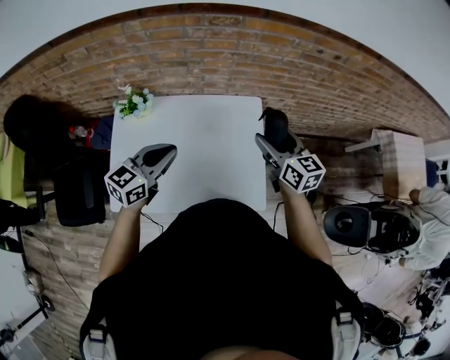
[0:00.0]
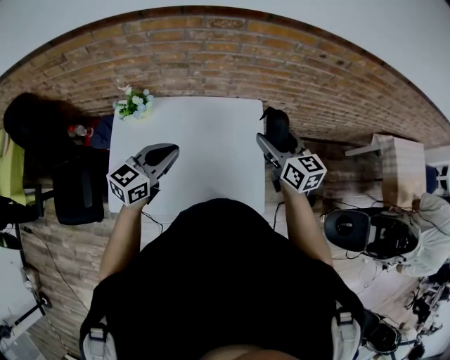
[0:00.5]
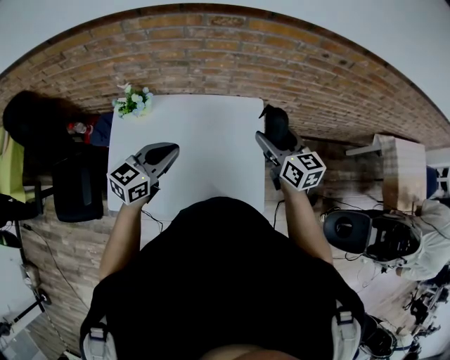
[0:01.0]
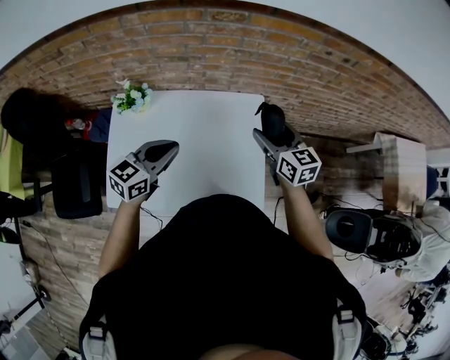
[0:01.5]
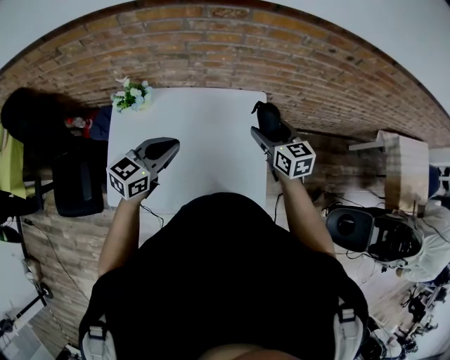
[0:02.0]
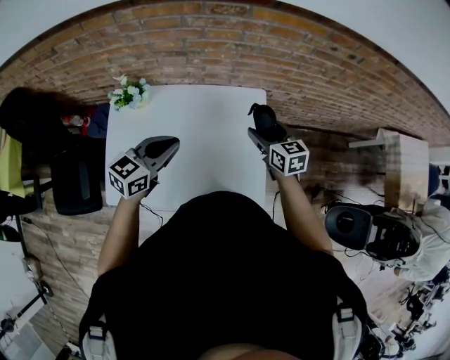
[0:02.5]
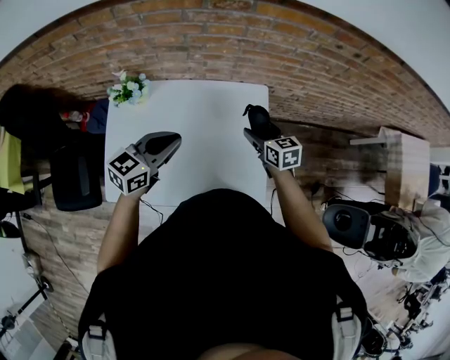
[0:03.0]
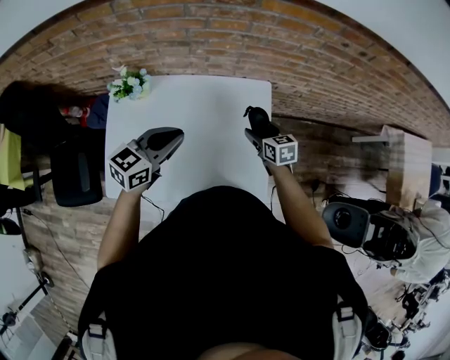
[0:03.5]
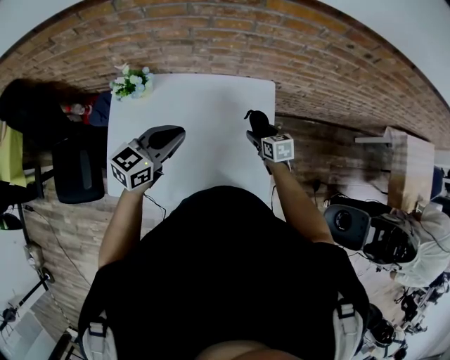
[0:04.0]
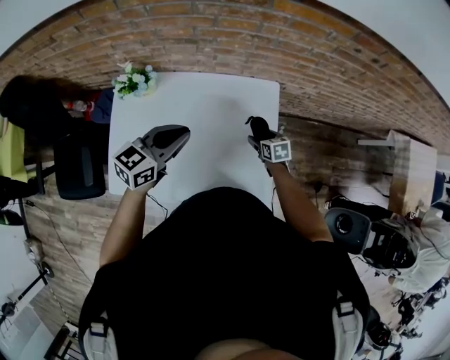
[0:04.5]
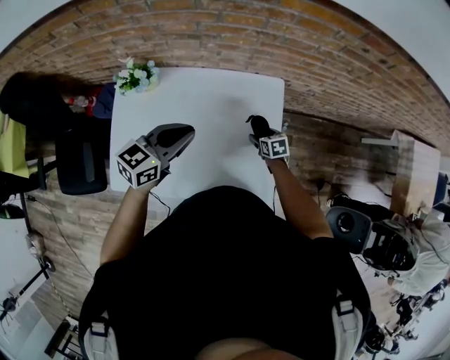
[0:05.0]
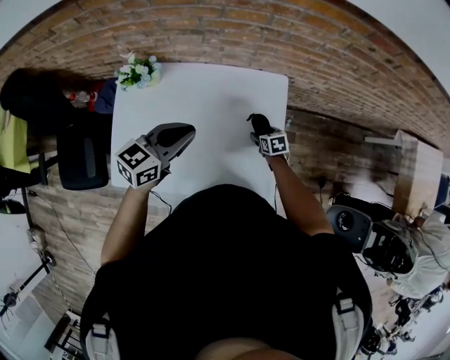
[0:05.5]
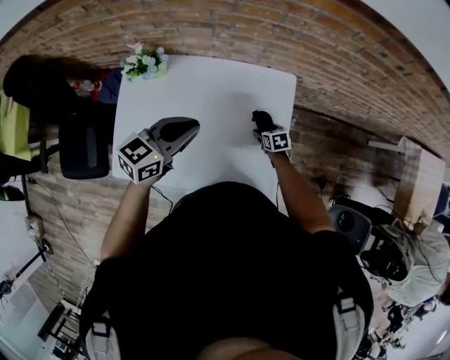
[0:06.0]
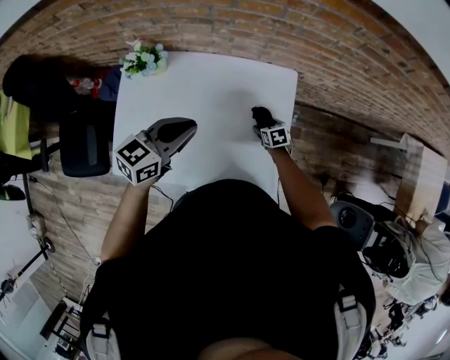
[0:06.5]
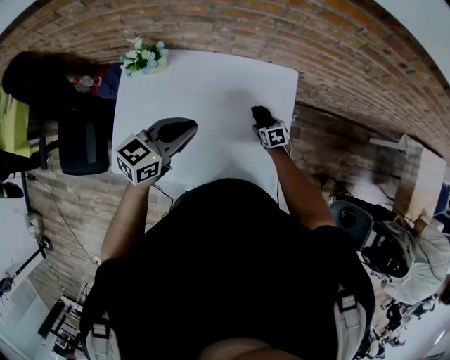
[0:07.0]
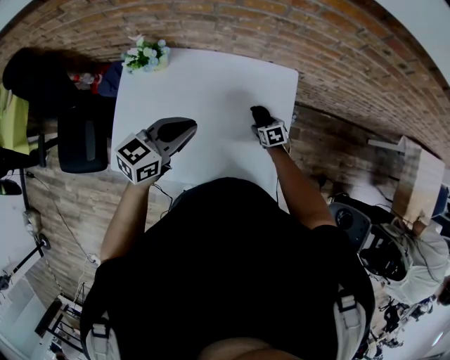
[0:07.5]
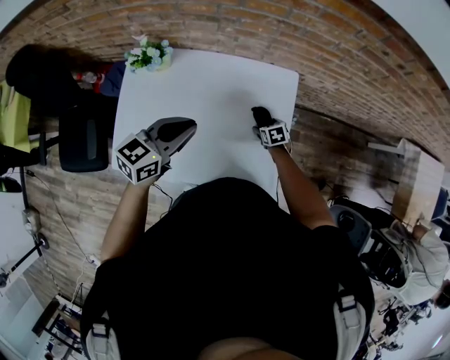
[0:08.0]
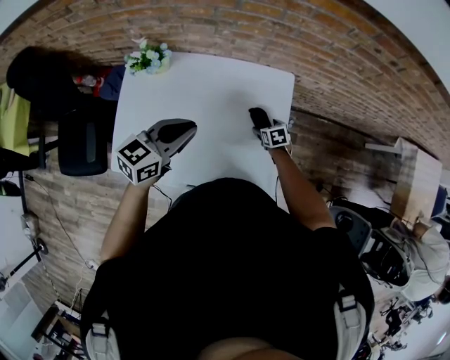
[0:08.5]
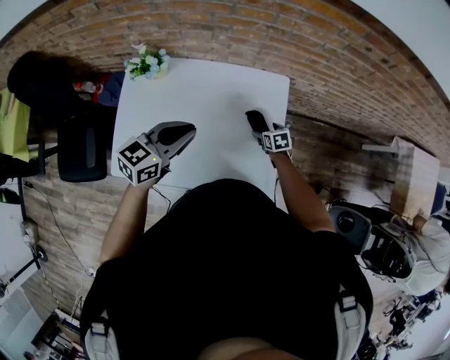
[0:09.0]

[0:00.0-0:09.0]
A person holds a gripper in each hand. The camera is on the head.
0:00.0 to 0:02.0: The right gripper travels downward and forward by approximately 10 cm.
0:02.0 to 0:04.5: The right gripper travels downward by roughly 25 cm, and changes its angle by some 30 degrees.
0:04.5 to 0:07.0: The right gripper goes some 10 cm downward.
0:07.0 to 0:09.0: The grippers make only small movements.

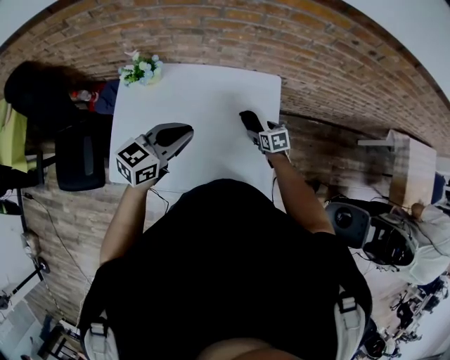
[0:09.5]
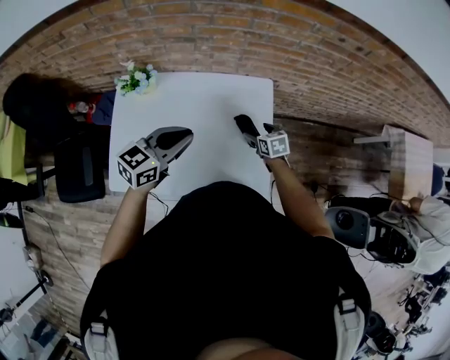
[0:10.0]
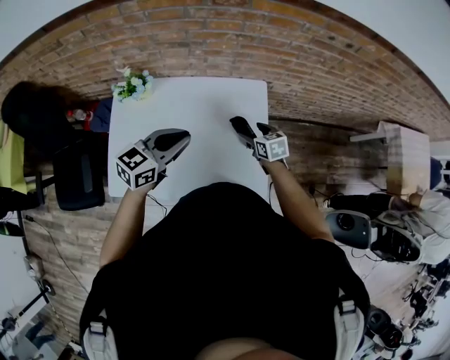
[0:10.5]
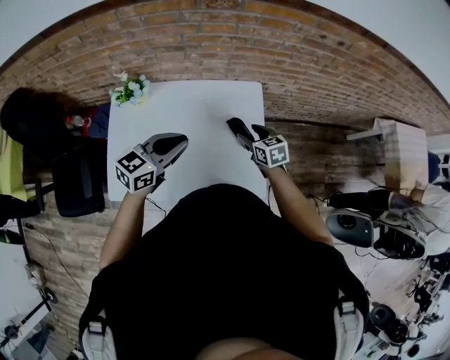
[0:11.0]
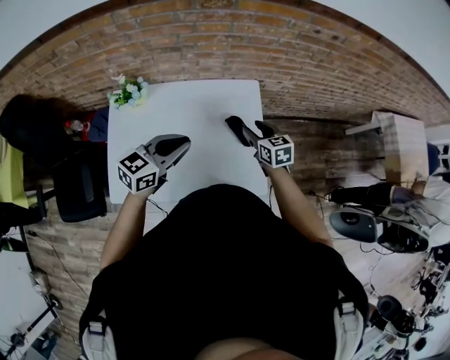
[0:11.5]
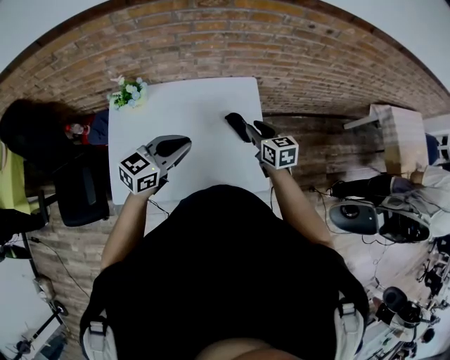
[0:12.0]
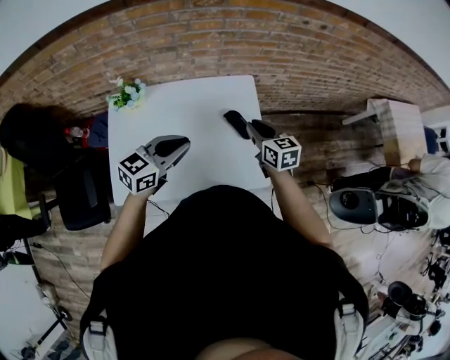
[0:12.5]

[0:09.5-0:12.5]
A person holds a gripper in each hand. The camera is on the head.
0:09.5 to 0:11.0: The right gripper goes roughly 15 cm upward.
0:11.0 to 0:12.5: The right gripper travels upward by about 10 cm, and closes its fingers.

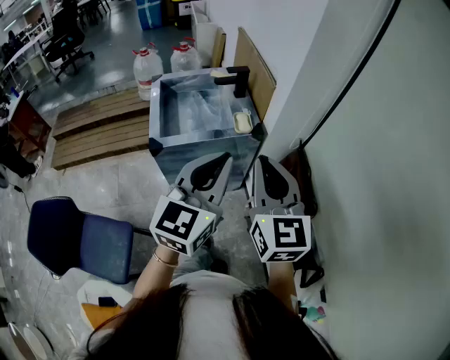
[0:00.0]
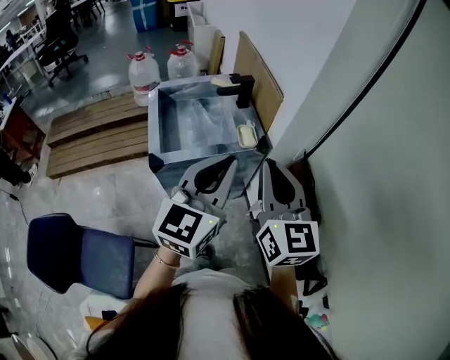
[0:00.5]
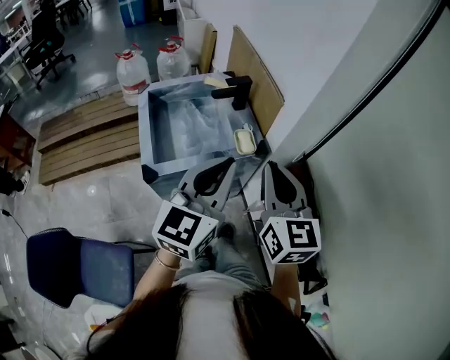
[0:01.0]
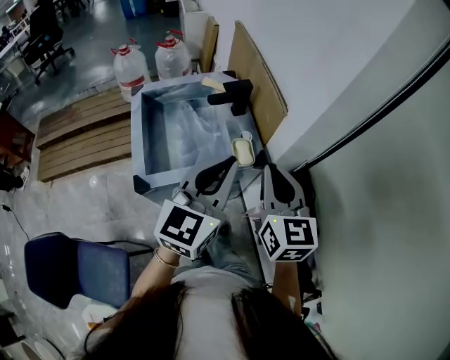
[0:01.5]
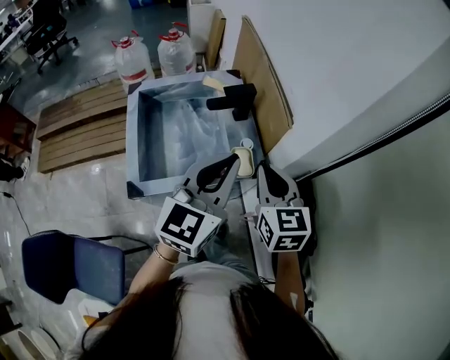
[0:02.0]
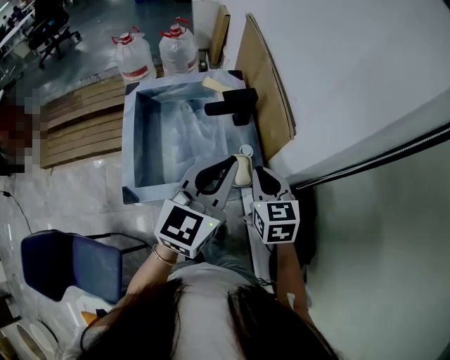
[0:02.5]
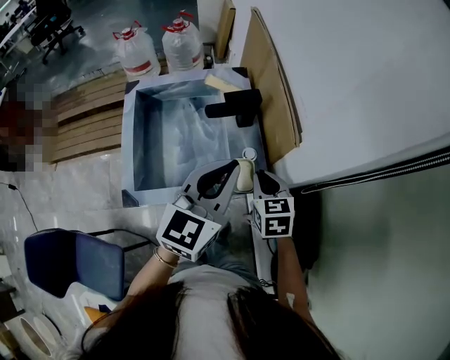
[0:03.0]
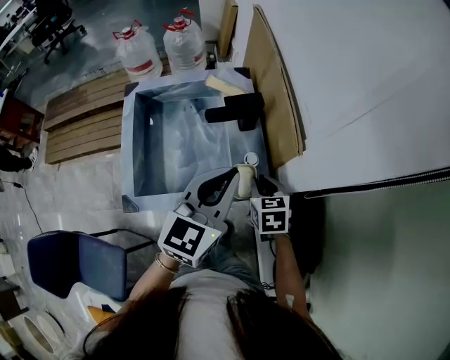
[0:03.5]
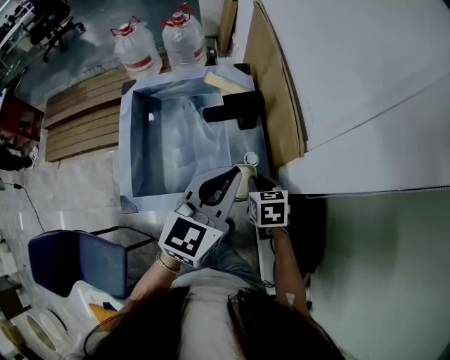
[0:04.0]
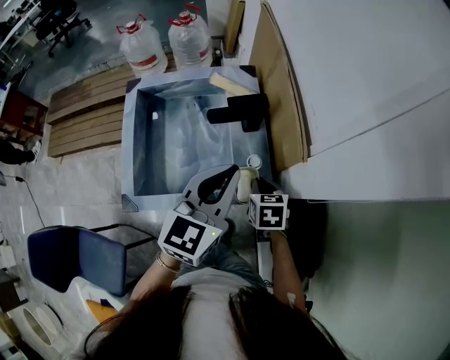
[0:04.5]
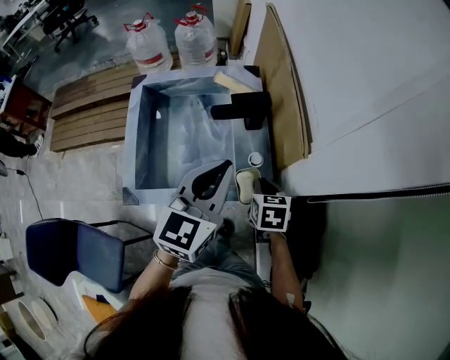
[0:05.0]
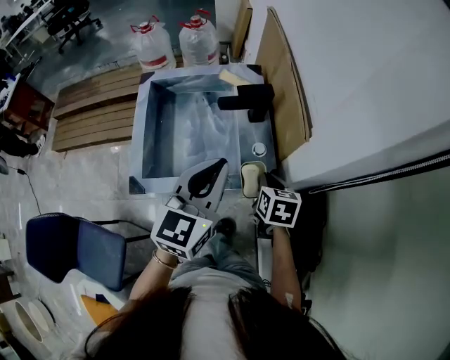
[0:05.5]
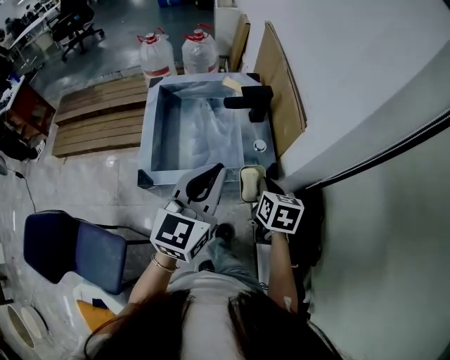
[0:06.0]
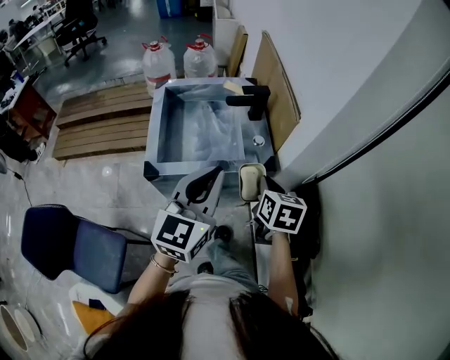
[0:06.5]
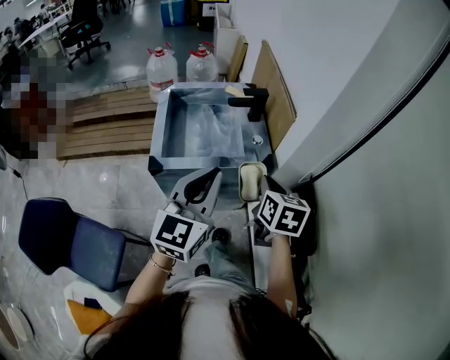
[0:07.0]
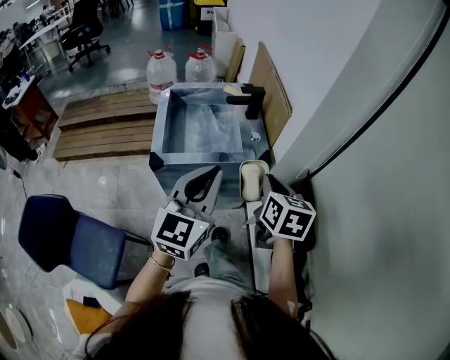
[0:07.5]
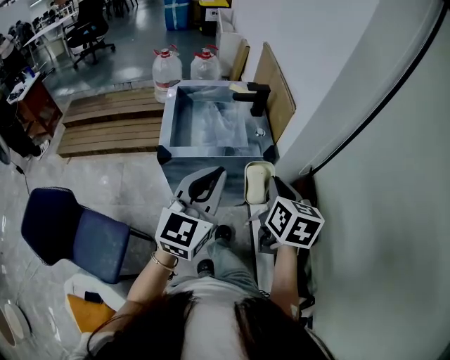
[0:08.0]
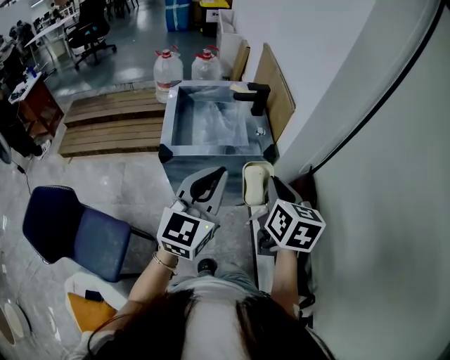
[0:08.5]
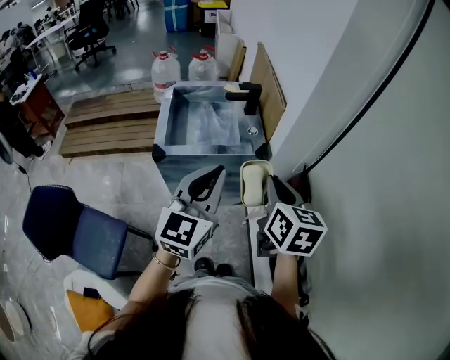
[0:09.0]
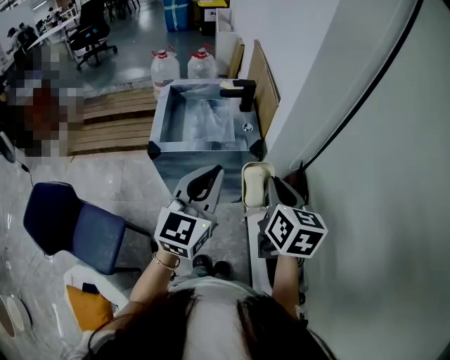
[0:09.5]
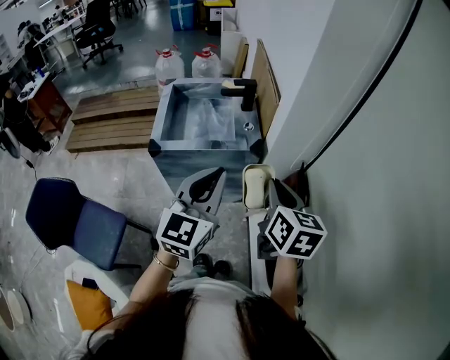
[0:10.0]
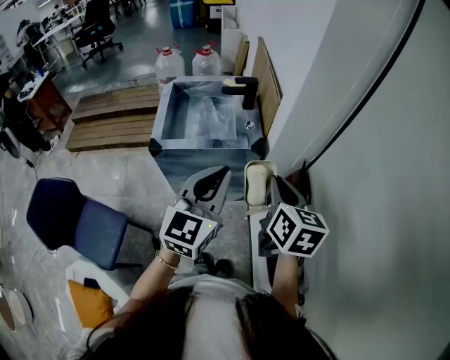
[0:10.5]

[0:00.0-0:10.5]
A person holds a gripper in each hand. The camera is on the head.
0:00.0 to 0:02.0: The left gripper travels forward by roughly 25 cm, while the right gripper moves forward and downward, roughly 30 cm.
0:02.0 to 0:04.0: The left gripper heads forward and downward, covering about 10 cm, while the right gripper is displaced downward and forward by some 25 cm, and tilts its fingers roughly 30 degrees downward.
0:04.0 to 0:06.5: The left gripper is displaced backward by approximately 20 cm. The right gripper heads backward and upward, covering roughly 20 cm.
0:06.5 to 0:08.5: The right gripper is displaced backward and upward by roughly 20 cm; the left gripper goes approximately 15 cm backward.
0:08.5 to 0:10.5: Both grippers move to the right, approximately 10 cm.

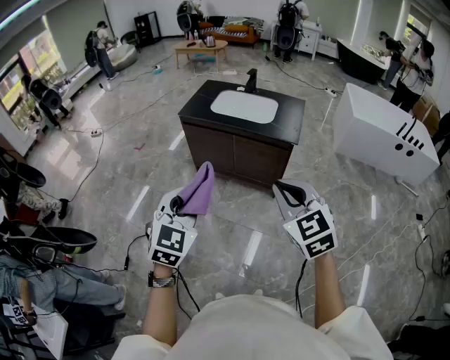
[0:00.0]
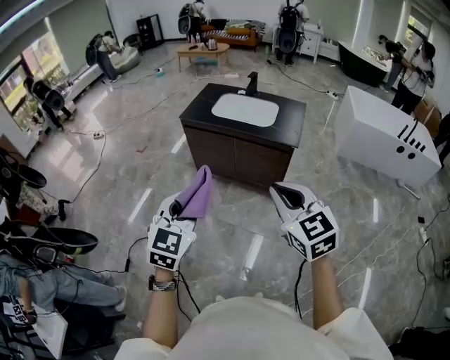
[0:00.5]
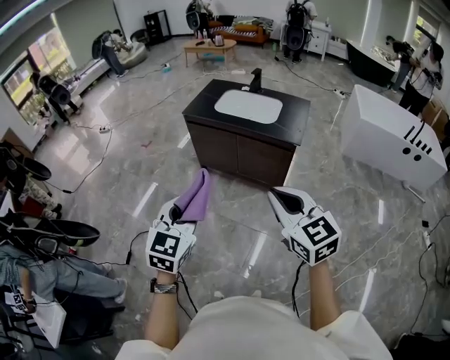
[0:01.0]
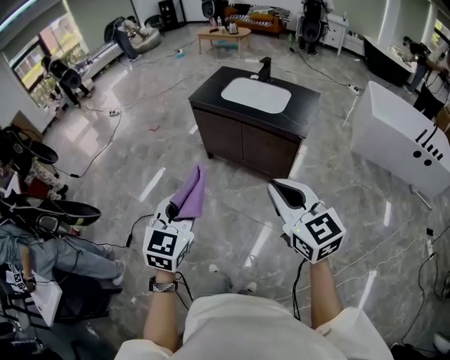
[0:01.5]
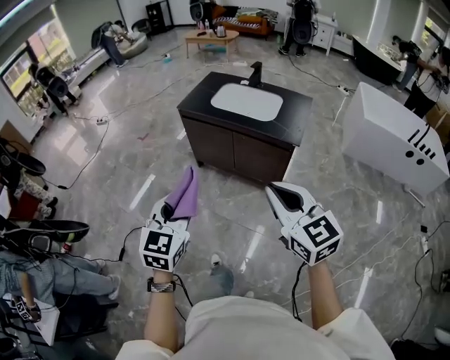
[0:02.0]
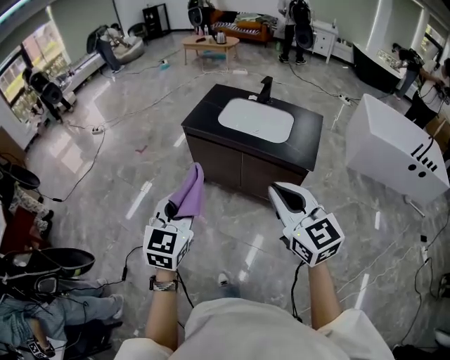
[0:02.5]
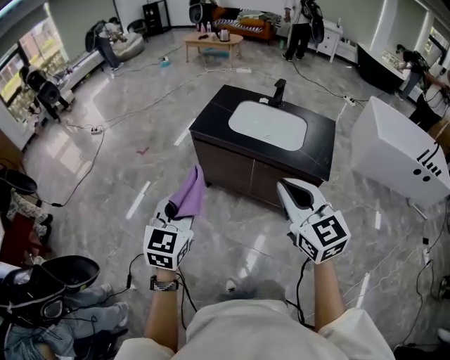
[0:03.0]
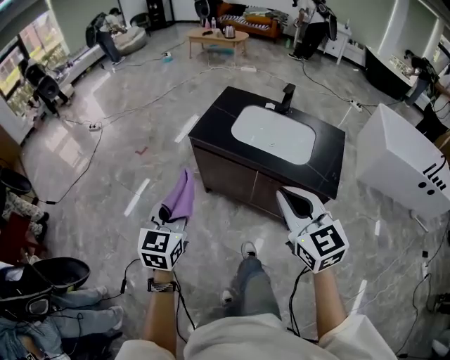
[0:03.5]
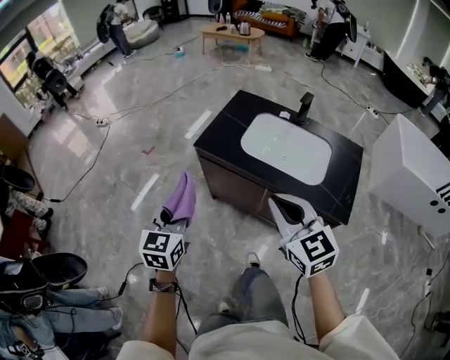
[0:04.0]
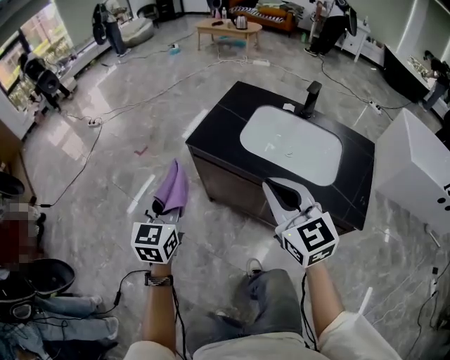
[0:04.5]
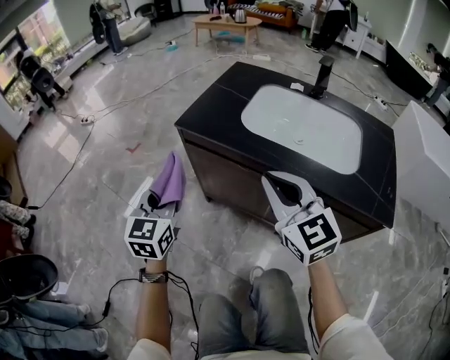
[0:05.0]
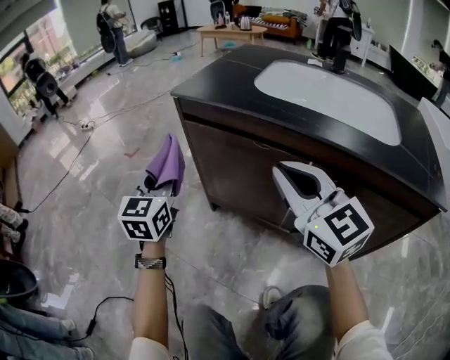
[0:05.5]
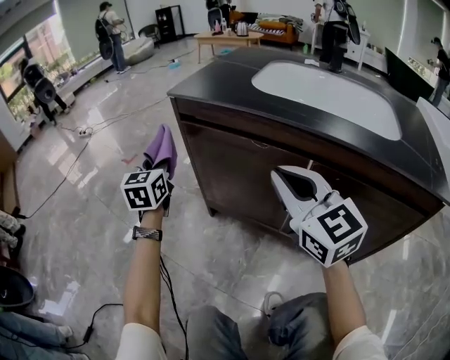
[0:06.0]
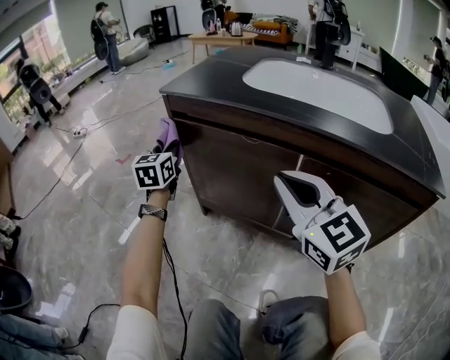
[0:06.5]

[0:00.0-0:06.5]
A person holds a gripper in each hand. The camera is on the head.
0:00.0 to 0:02.0: The right gripper moves some 5 cm, and swivels about 20 degrees; the left gripper shifts by about 5 cm.
0:02.0 to 0:04.5: The pair of grippers is taken forward, about 60 cm.
0:04.5 to 0:06.5: The left gripper is displaced downward and forward by about 50 cm, while the right gripper heads downward, covering some 40 cm.
